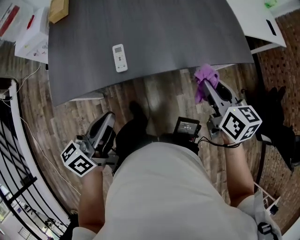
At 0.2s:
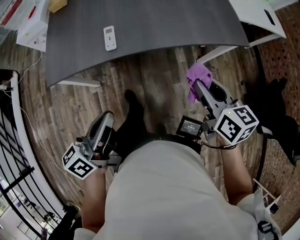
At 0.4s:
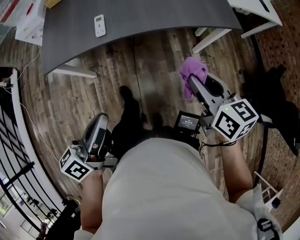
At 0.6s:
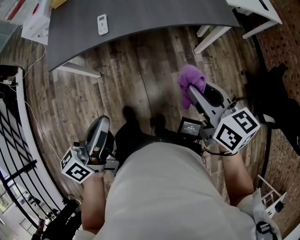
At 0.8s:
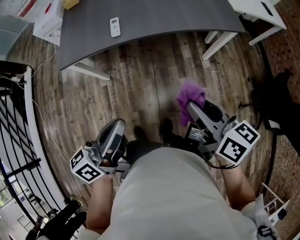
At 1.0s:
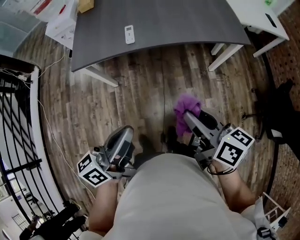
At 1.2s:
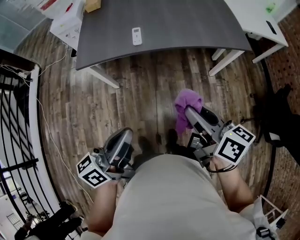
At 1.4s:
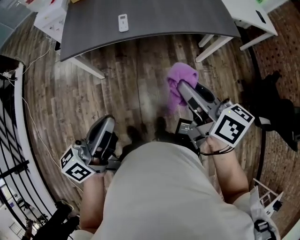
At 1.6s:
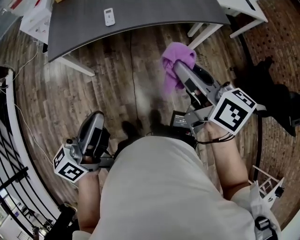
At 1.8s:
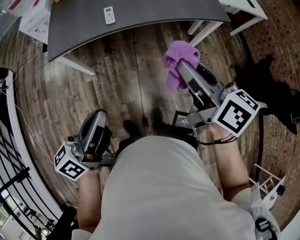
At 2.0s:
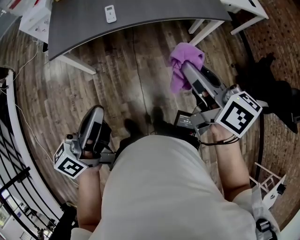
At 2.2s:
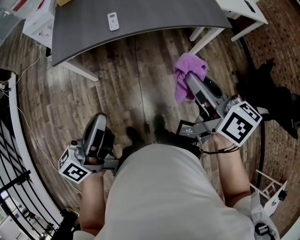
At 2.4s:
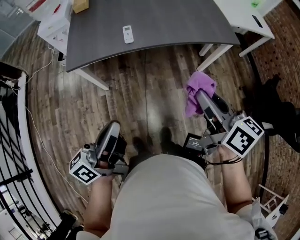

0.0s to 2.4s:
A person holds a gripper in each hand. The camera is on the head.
0.0s to 1.2s: The two grippers go approximately 25 cm backward. The right gripper turns by about 30 degrees.
1.2s to 2.4s: The grippers stay close to where they were, moving slightly.

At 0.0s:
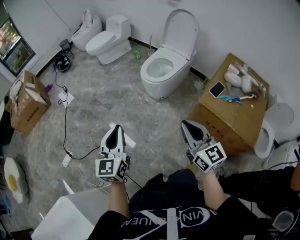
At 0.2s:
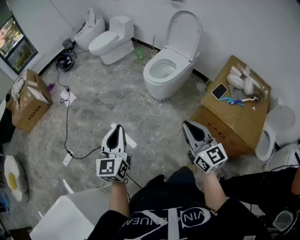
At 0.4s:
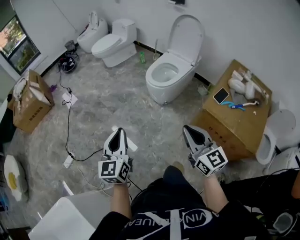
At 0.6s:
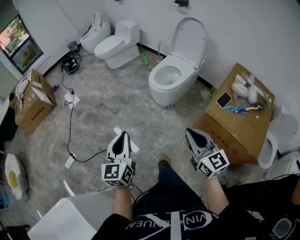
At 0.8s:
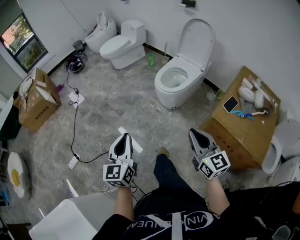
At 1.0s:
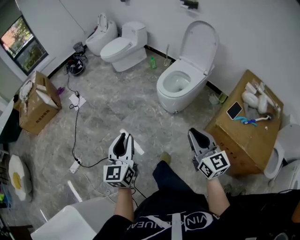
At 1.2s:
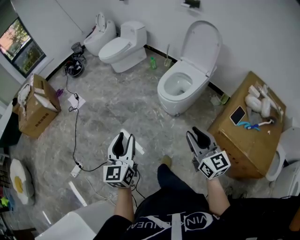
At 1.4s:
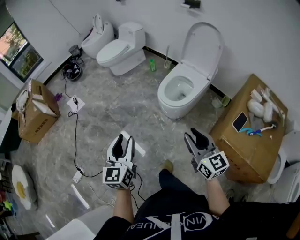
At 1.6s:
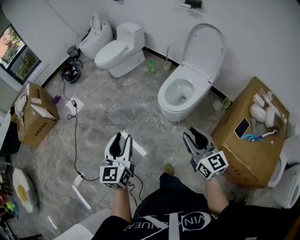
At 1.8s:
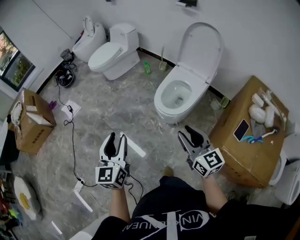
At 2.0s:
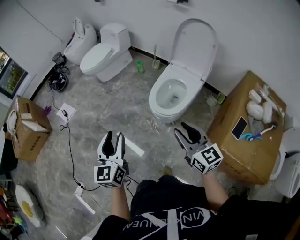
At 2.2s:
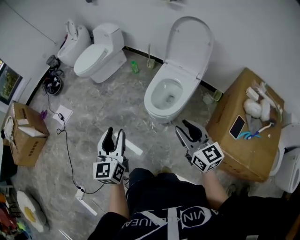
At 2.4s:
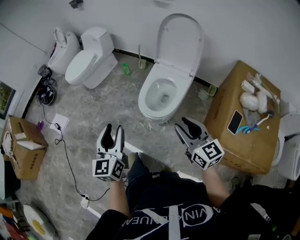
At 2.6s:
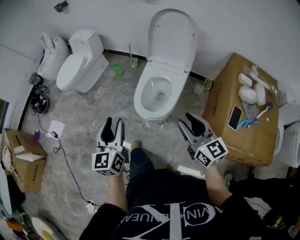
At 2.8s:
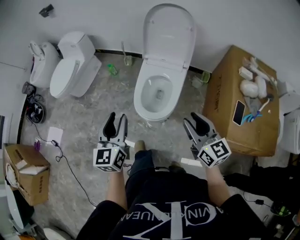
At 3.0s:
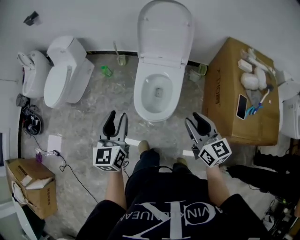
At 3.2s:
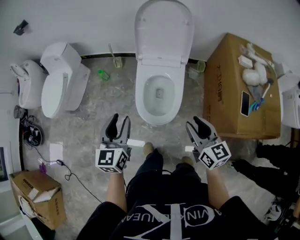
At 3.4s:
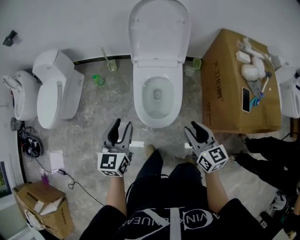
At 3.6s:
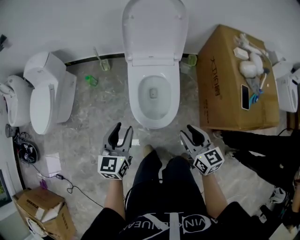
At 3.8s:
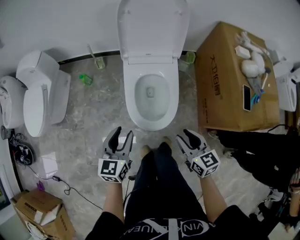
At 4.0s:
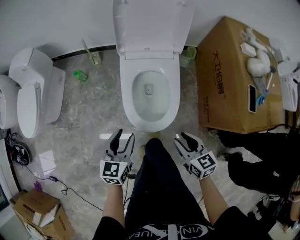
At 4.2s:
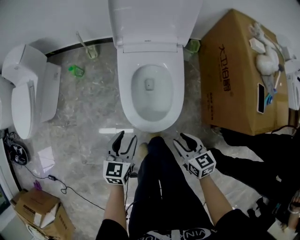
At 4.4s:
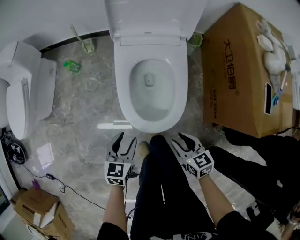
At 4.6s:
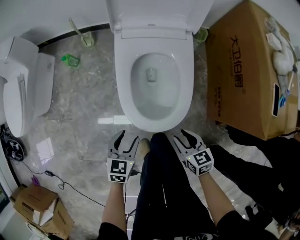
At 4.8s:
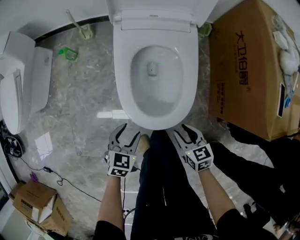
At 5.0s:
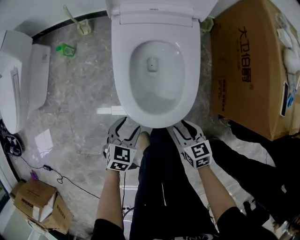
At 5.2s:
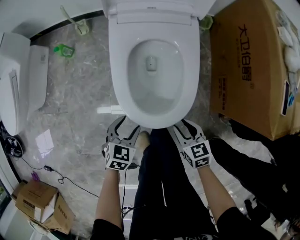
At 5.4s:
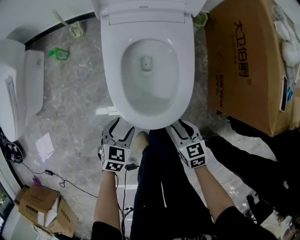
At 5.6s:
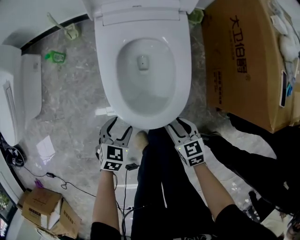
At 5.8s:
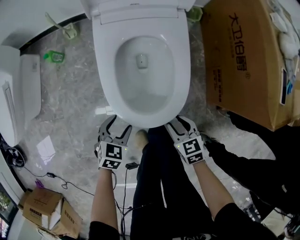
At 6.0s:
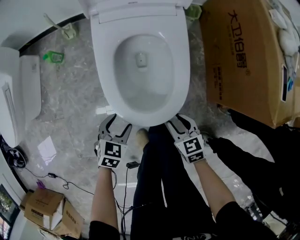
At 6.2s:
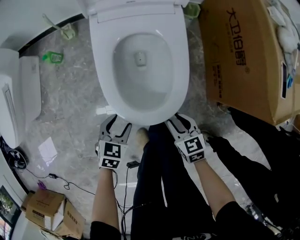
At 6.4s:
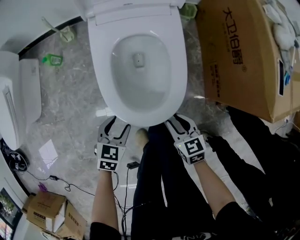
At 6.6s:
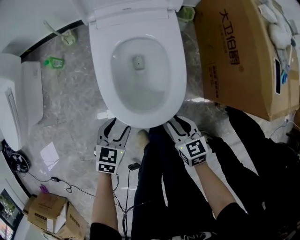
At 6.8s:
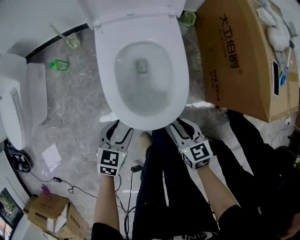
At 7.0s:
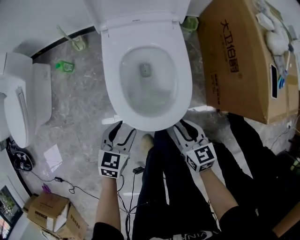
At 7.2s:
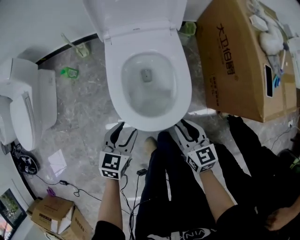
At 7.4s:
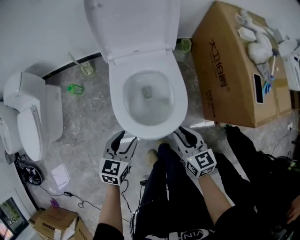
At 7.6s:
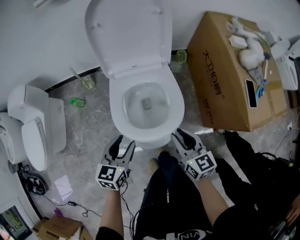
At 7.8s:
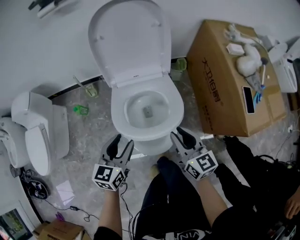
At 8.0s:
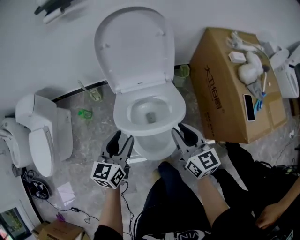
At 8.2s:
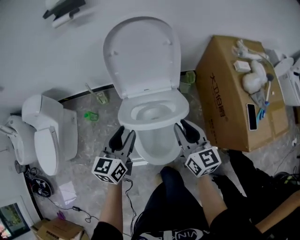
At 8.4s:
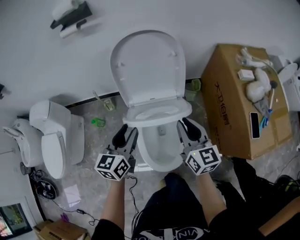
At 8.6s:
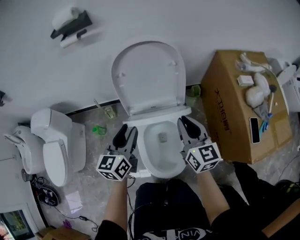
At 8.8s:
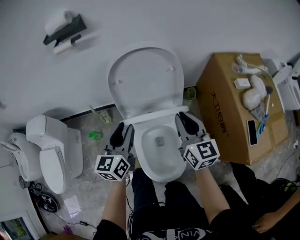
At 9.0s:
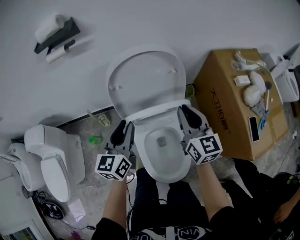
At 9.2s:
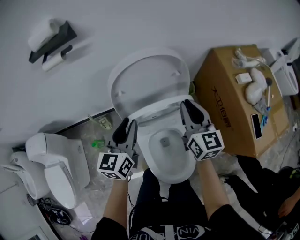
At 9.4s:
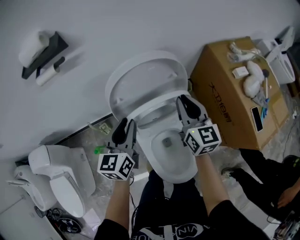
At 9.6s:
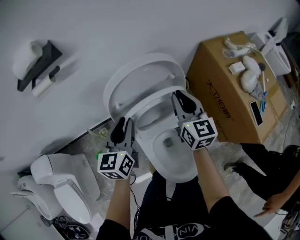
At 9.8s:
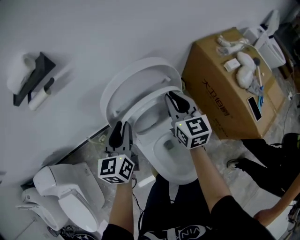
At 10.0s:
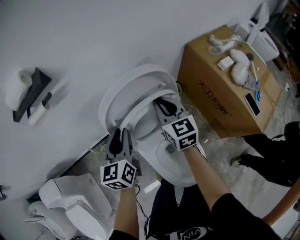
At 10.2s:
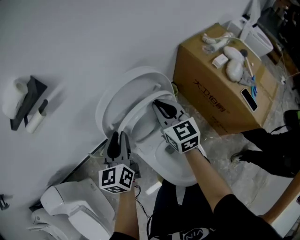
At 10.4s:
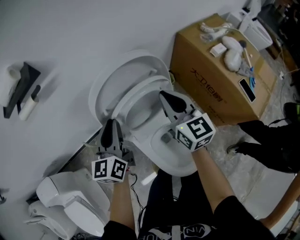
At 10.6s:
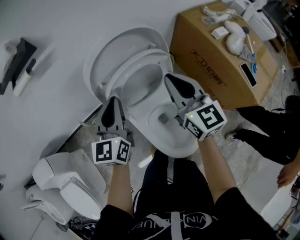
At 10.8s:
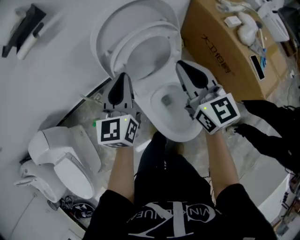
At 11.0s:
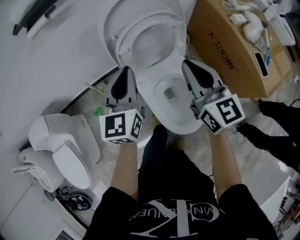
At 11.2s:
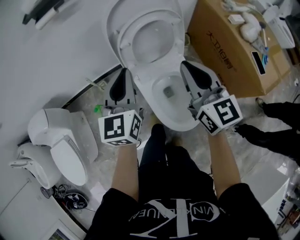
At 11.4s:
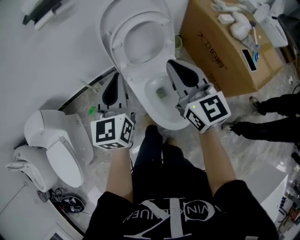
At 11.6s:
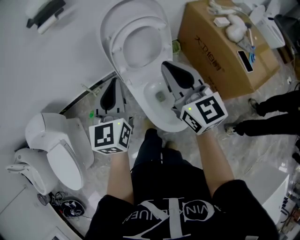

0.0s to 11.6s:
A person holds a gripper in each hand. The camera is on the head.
0.0s to 1.4s: The two grippers go approximately 20 cm forward. The left gripper opens up; the right gripper opens its fingers.
1.4s to 2.8s: The right gripper is displaced forward by approximately 25 cm, and rotates roughly 30 degrees; the left gripper heads forward, covering approximately 35 cm, and rotates about 30 degrees.
2.8s to 4.4s: Both grippers travel together downward, about 35 cm. The left gripper turns by roughly 40 degrees. The right gripper points its fingers approximately 30 degrees further downward.
4.4s to 5.8s: The grippers both shift downward by approximately 10 cm. The left gripper swivels roughly 30 degrees.
5.8s to 7.2s: The two grippers go approximately 15 cm upward. The right gripper swivels roughly 20 degrees.
7.2s to 8.8s: Both grippers move forward and upward, approximately 40 cm. The right gripper rotates approximately 30 degrees, while the left gripper swivels about 30 degrees.
8.8s to 10.2s: The left gripper moves forward, roughly 15 cm. The right gripper is displaced forward and to the left by about 15 cm.
10.2s to 11.6s: The grippers both shift backward by roughly 25 cm. The left gripper closes up.

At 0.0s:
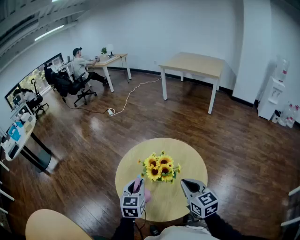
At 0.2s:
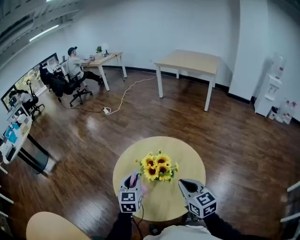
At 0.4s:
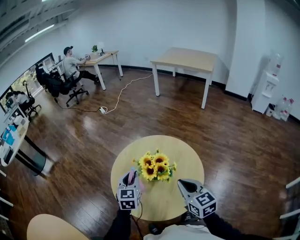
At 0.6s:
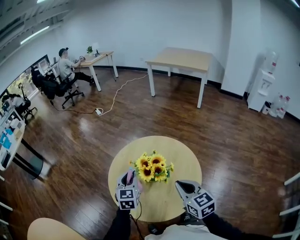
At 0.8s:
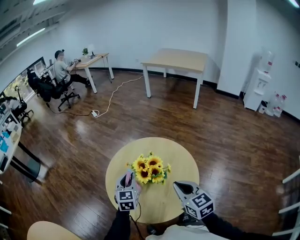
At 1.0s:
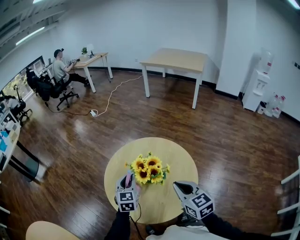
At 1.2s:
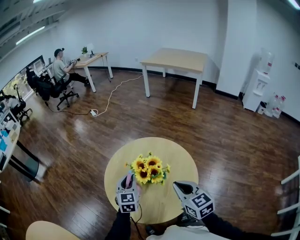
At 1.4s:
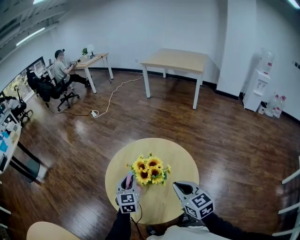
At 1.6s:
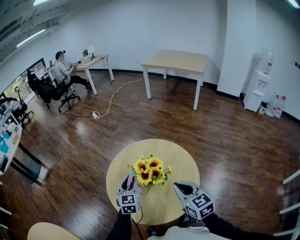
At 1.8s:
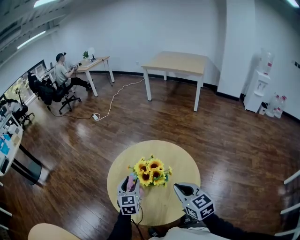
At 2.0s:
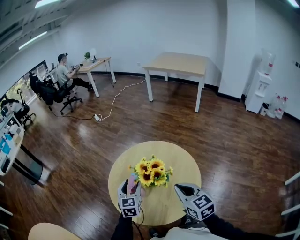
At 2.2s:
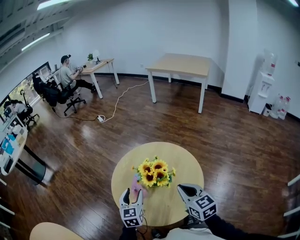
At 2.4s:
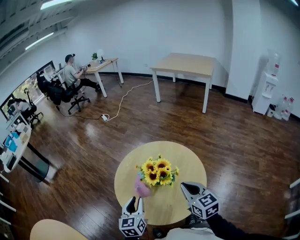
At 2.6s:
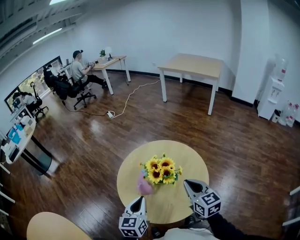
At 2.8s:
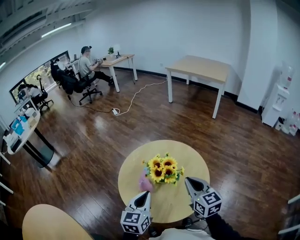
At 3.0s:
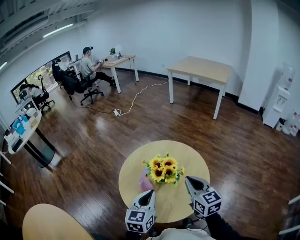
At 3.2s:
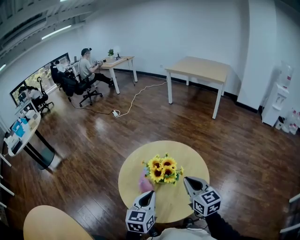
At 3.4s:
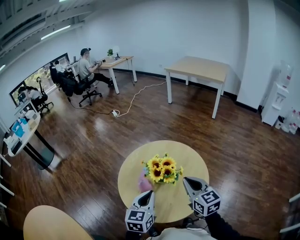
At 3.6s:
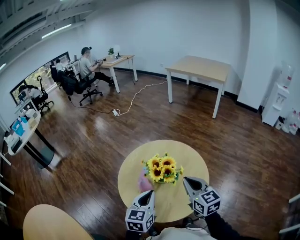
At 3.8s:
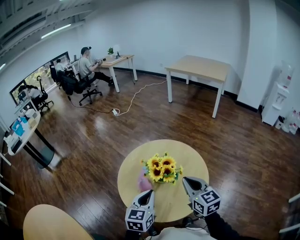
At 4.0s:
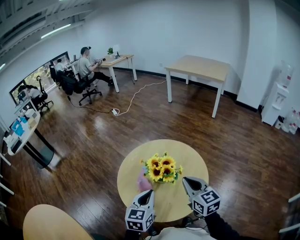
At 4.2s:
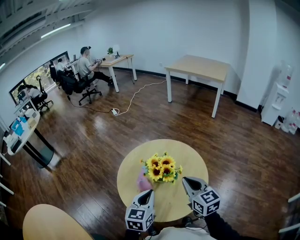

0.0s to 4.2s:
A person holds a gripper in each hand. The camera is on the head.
0.0s to 1.4s: The left gripper goes about 5 cm forward.
1.4s to 2.8s: The left gripper goes some 15 cm backward and upward, and opens, then closes again.
2.8s to 4.2s: The grippers move only a little.

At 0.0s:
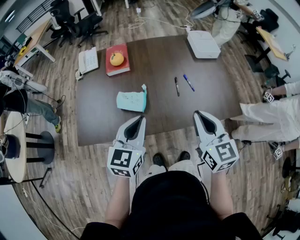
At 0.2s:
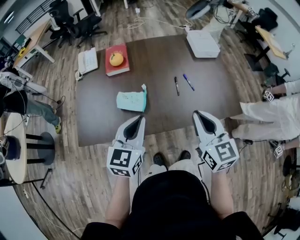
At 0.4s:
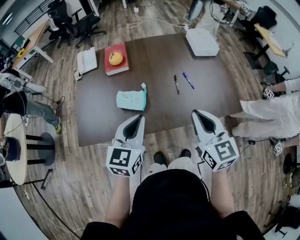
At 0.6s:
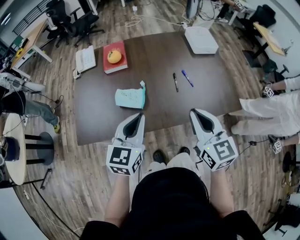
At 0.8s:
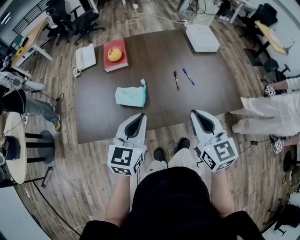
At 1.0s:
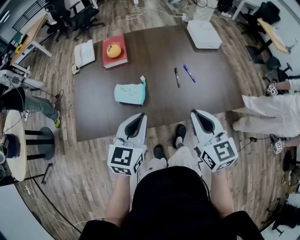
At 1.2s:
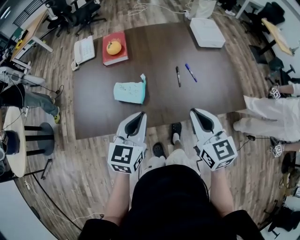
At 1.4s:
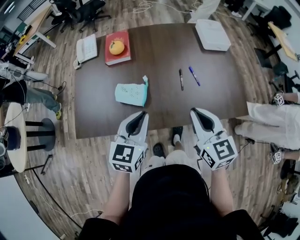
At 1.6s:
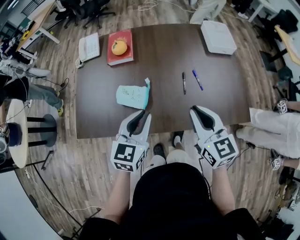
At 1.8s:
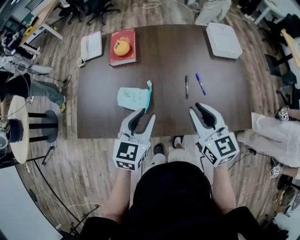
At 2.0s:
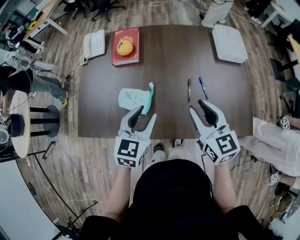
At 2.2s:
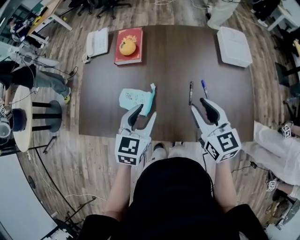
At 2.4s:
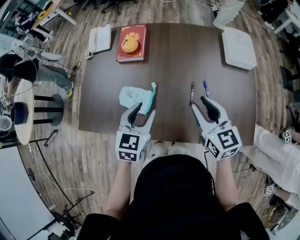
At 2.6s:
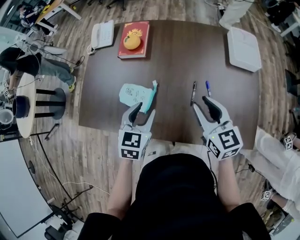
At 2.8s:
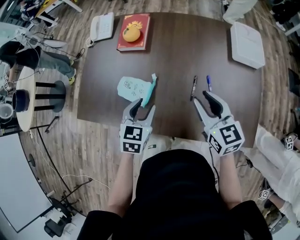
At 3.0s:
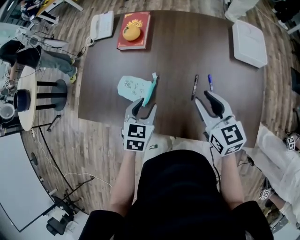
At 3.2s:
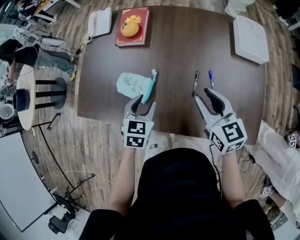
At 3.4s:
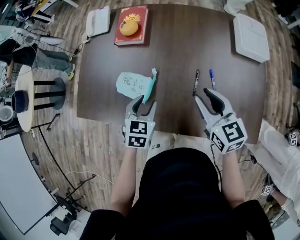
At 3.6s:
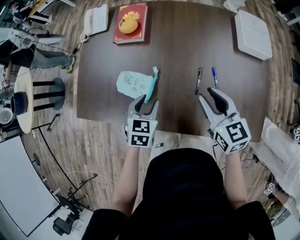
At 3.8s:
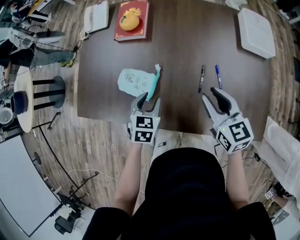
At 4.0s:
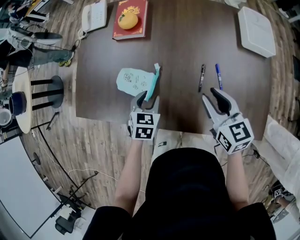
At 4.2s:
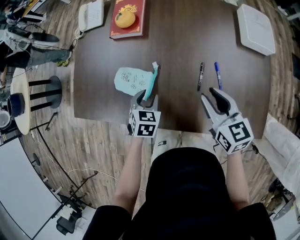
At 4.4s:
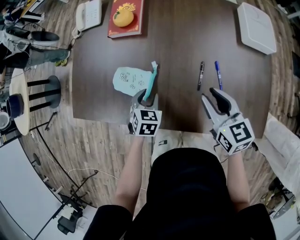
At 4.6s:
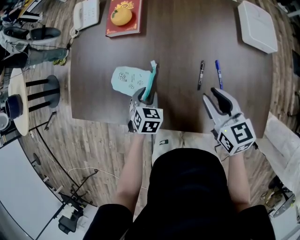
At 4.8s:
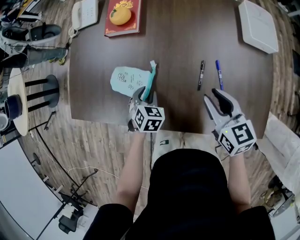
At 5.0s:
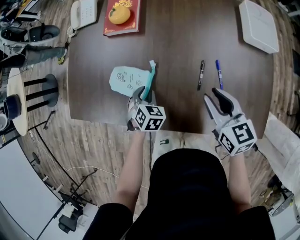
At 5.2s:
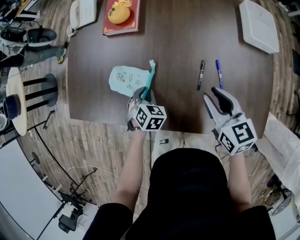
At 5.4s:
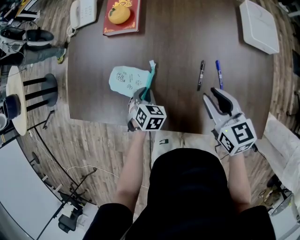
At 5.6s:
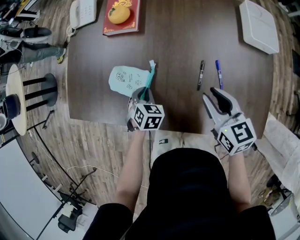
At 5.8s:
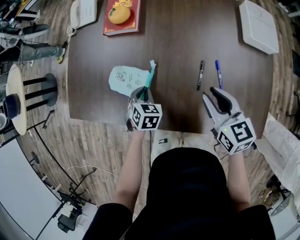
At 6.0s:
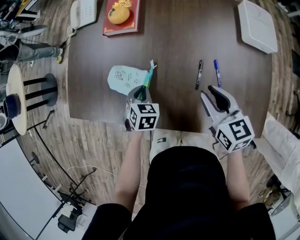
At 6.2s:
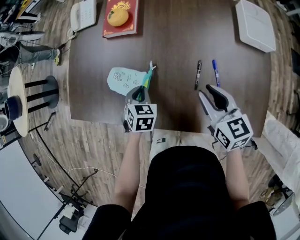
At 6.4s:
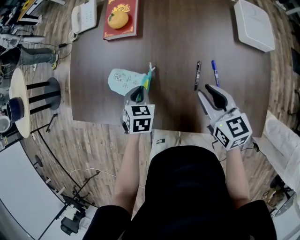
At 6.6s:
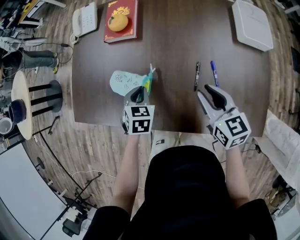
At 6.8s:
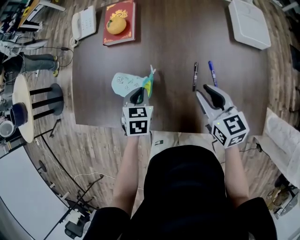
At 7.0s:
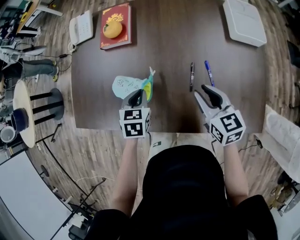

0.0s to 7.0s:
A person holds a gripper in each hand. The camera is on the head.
0.0s to 1.4s: The left gripper moves some 5 cm; the right gripper moves roughly 5 cm.
1.4s to 2.8s: The left gripper travels forward and downward by about 15 cm, turns by roughly 30 degrees, and opens up. Meanwhile the right gripper moves forward, roughly 15 cm, and opens up.
2.8s to 4.2s: The left gripper goes roughly 15 cm downward; the right gripper heads downward, covering roughly 5 cm.
4.2s to 5.6s: The left gripper goes roughly 5 cm downward, and closes.
5.6s to 7.0s: The left gripper goes roughly 10 cm upward.
